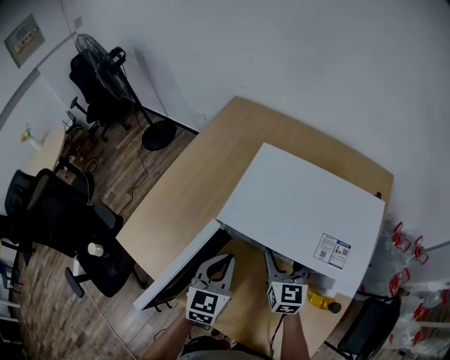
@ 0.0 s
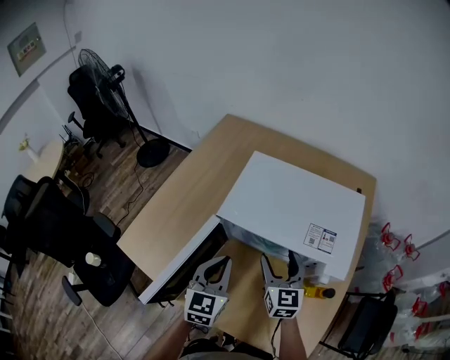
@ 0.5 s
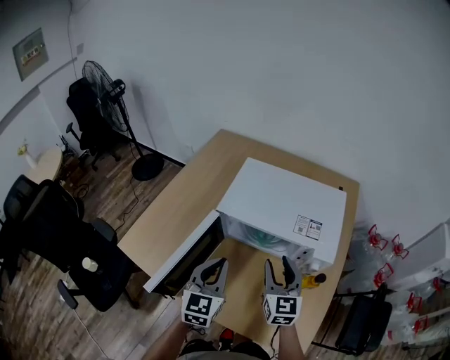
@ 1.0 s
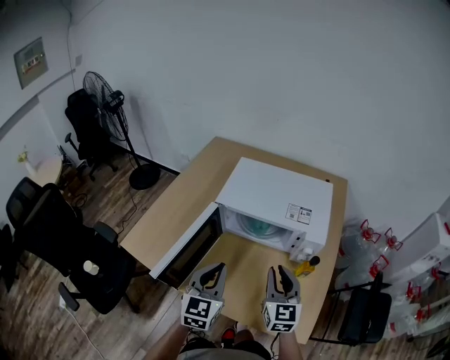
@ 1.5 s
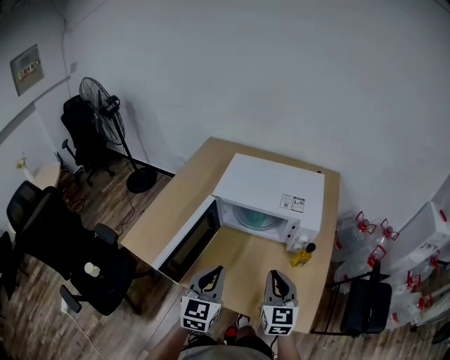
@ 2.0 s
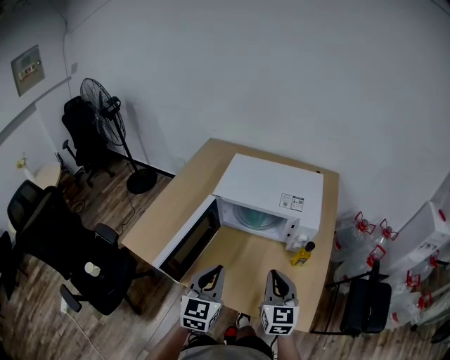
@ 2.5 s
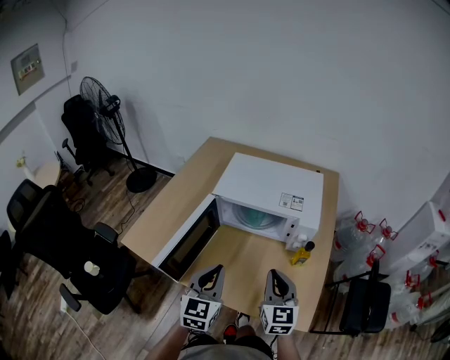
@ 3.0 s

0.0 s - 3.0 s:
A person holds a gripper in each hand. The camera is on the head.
0.0 s - 1.5 s: The two grippers go approximately 20 cm backward and upward. The right gripper closes up.
1.5 s - 3.0 s: The two grippers go about 5 cm backward.

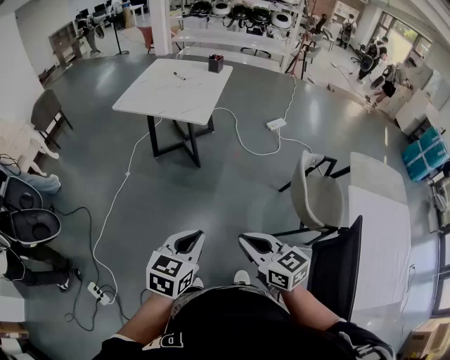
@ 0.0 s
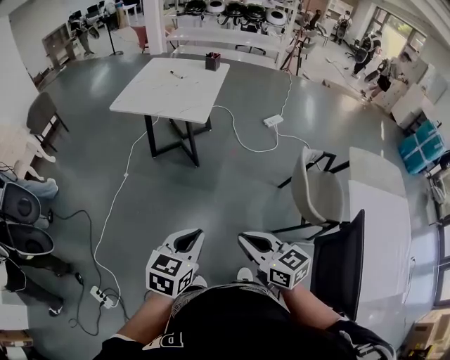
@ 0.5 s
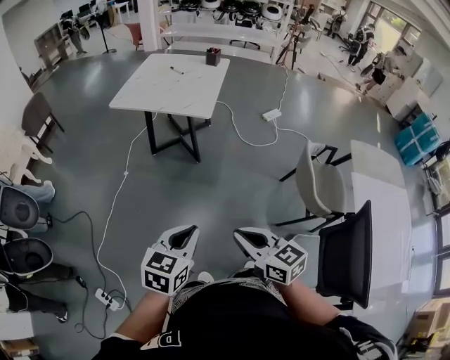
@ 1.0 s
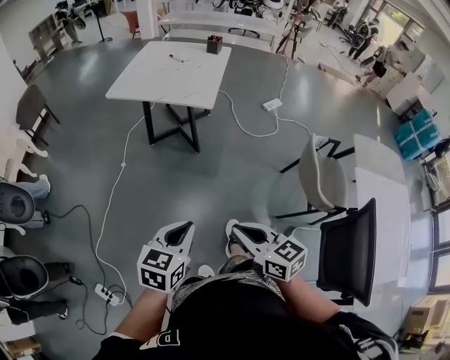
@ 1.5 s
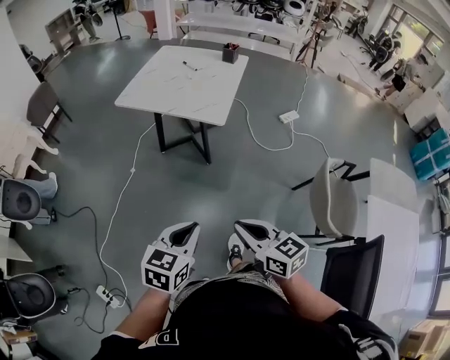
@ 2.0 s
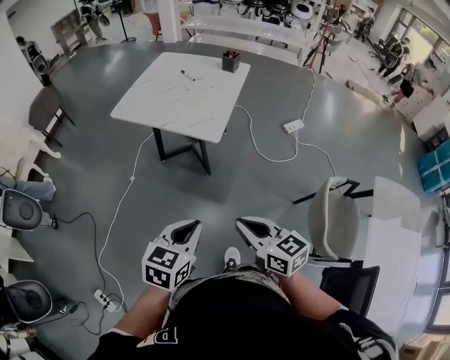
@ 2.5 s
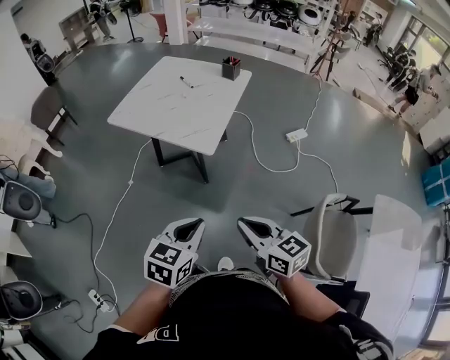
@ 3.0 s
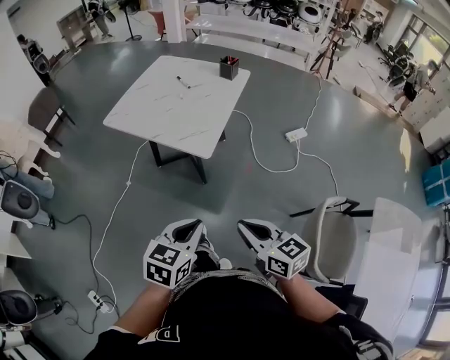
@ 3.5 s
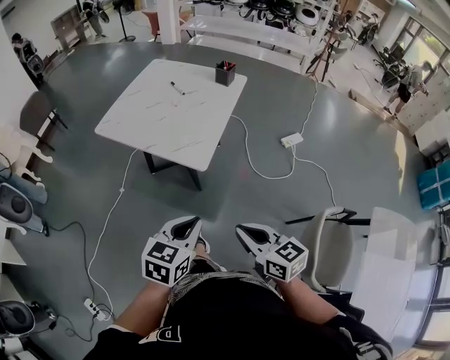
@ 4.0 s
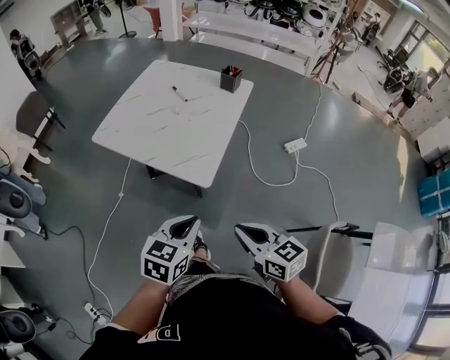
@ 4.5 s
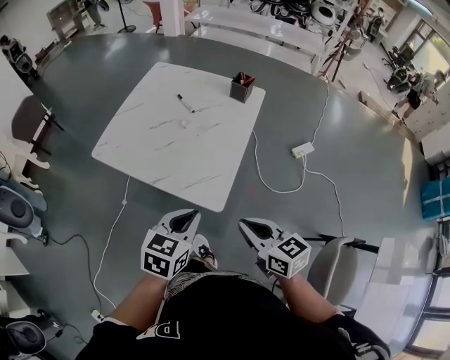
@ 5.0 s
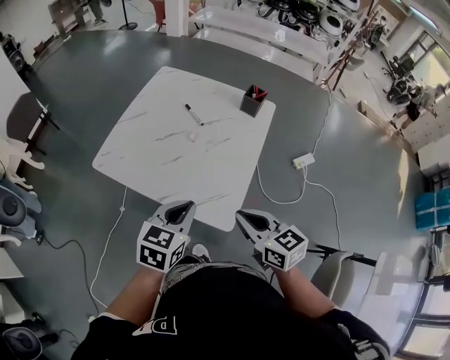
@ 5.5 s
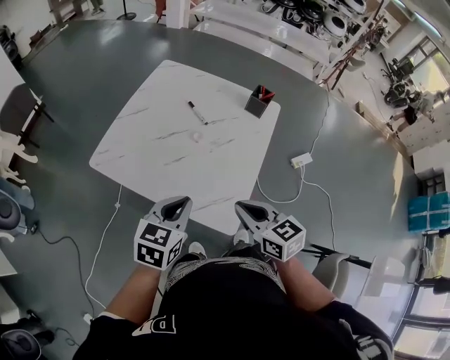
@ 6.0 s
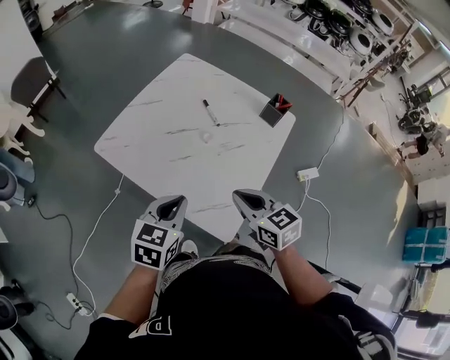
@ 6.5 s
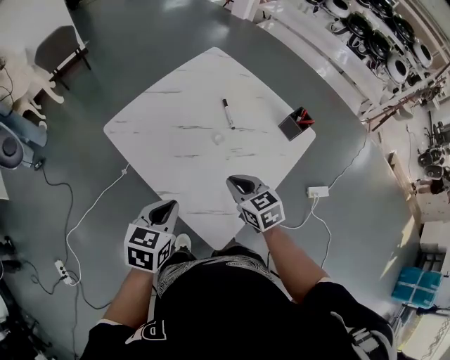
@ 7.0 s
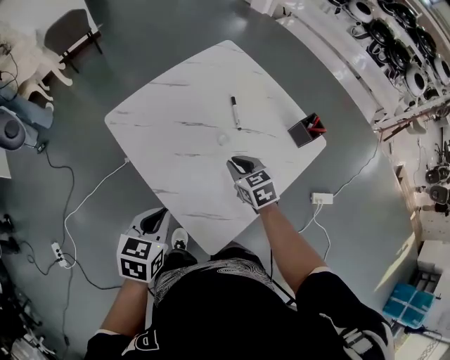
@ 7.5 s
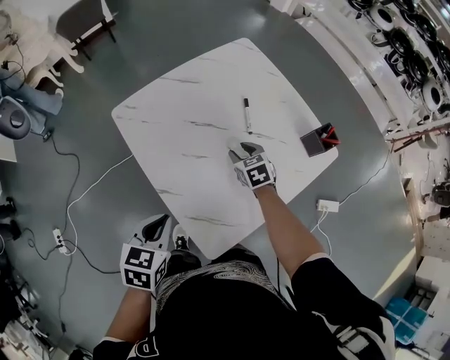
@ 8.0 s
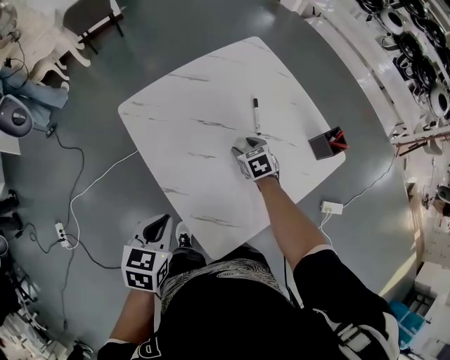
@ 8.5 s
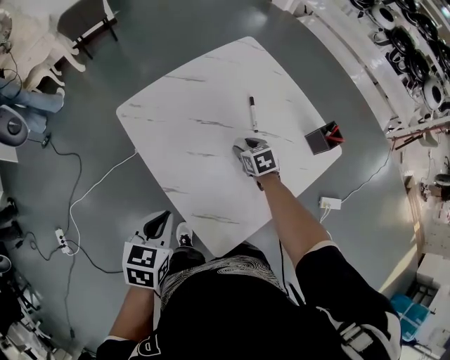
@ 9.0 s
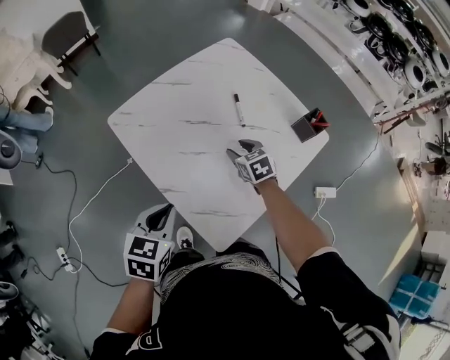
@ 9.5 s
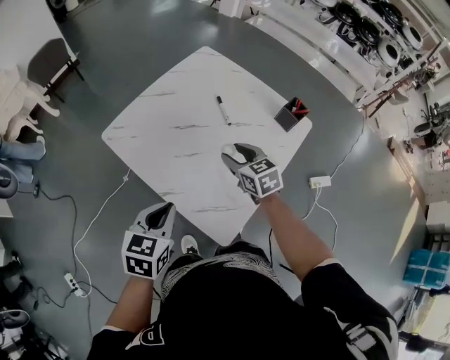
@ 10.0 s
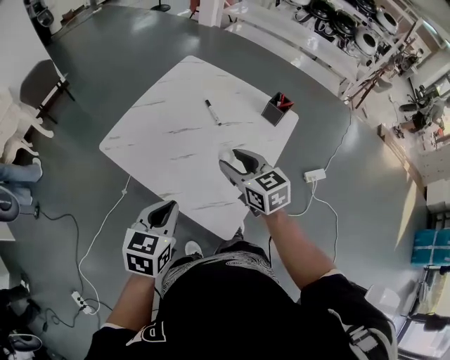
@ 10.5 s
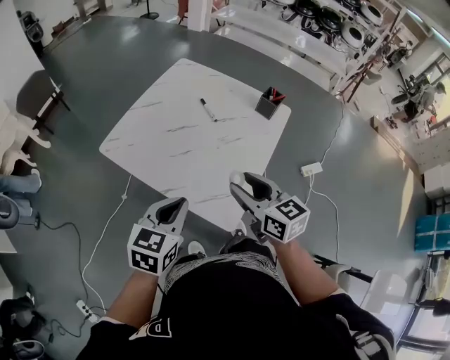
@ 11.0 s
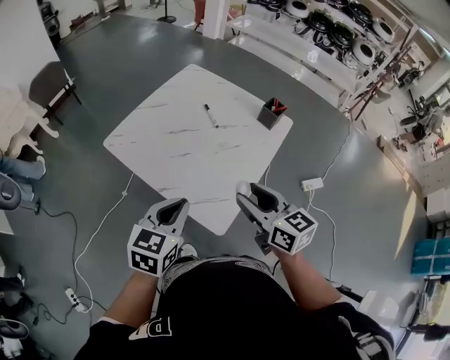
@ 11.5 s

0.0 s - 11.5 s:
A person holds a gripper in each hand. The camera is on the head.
0.0 s - 2.0 s: The grippers both shift forward and to the left by approximately 20 cm.
2.0 s - 4.0 s: Both grippers move forward and to the right, about 30 cm.
4.0 s - 6.0 s: The grippers both shift forward by some 40 cm.
6.0 s - 7.5 s: The right gripper travels forward and downward by approximately 25 cm, and turns by roughly 30 degrees; the left gripper goes some 5 cm downward, and swivels approximately 30 degrees.
7.5 s - 9.5 s: The right gripper opens.
9.5 s - 11.5 s: The right gripper travels backward and upward by approximately 35 cm, and tilts its fingers some 30 degrees upward; the left gripper goes about 15 cm upward, backward and to the right, and swivels approximately 20 degrees.

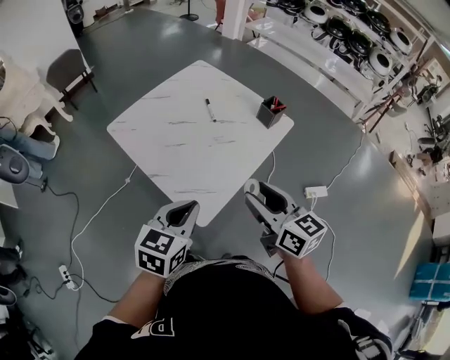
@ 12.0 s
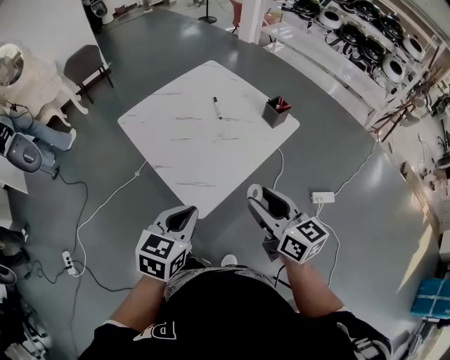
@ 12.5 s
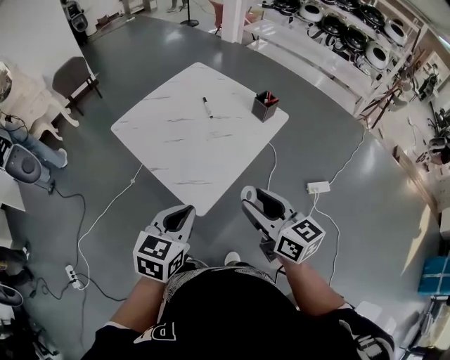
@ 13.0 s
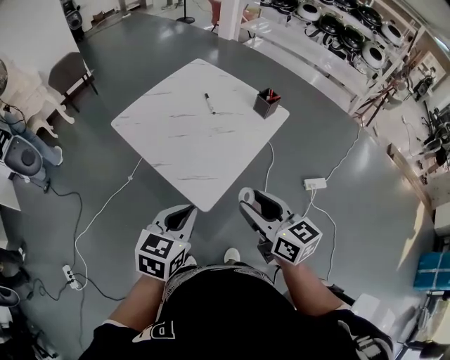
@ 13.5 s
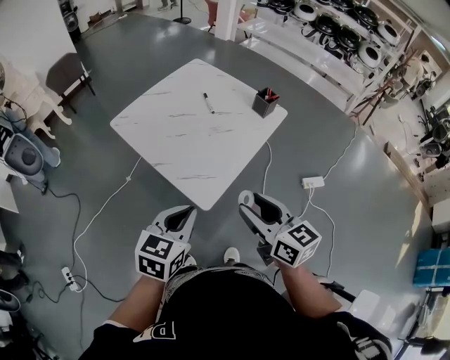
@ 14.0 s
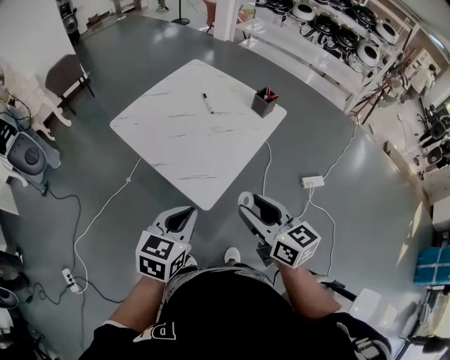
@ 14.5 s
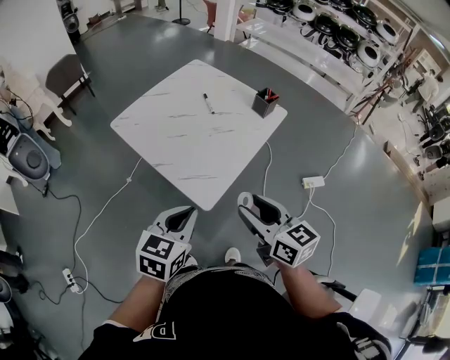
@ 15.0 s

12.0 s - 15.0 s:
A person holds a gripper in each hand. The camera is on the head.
12.0 s - 13.5 s: The two grippers go about 10 cm backward.
13.5 s - 15.0 s: The grippers make only small movements.

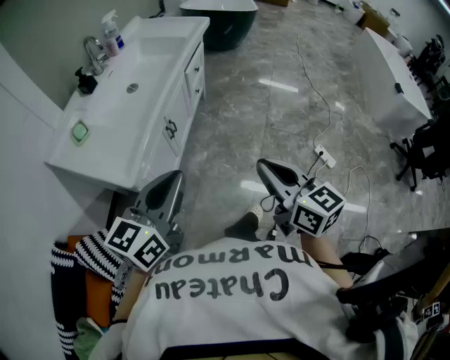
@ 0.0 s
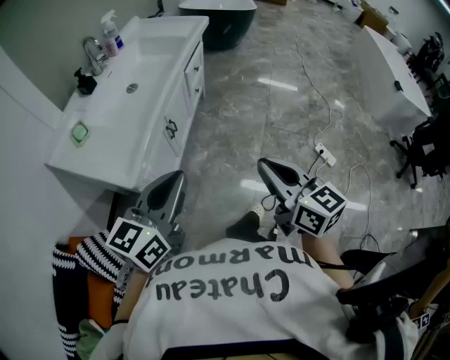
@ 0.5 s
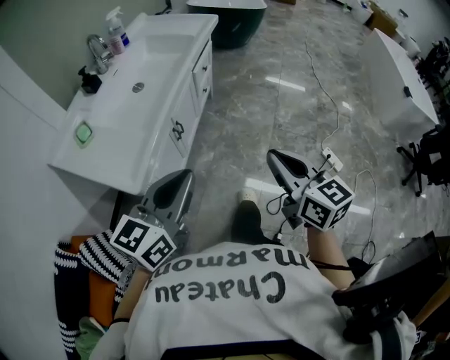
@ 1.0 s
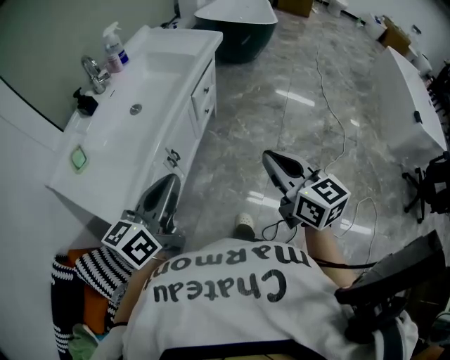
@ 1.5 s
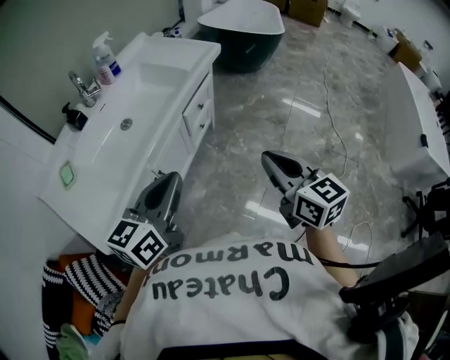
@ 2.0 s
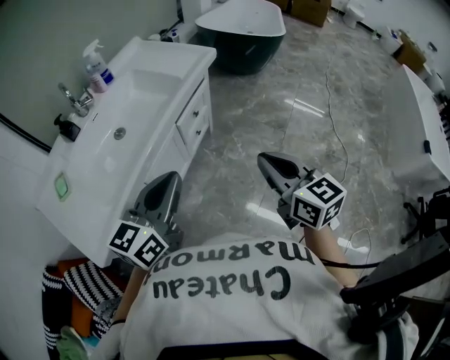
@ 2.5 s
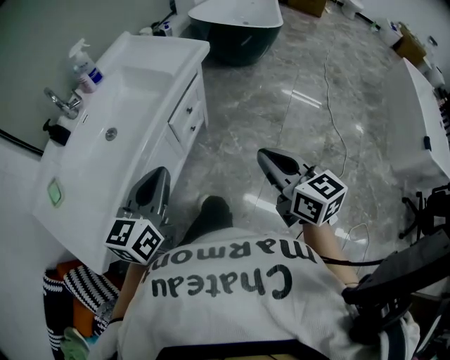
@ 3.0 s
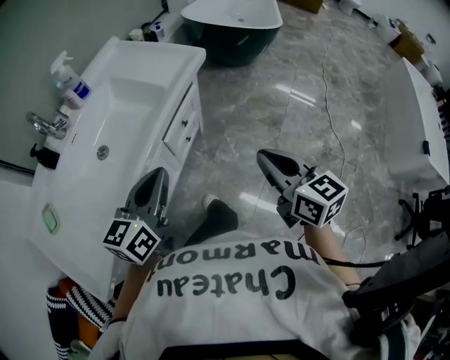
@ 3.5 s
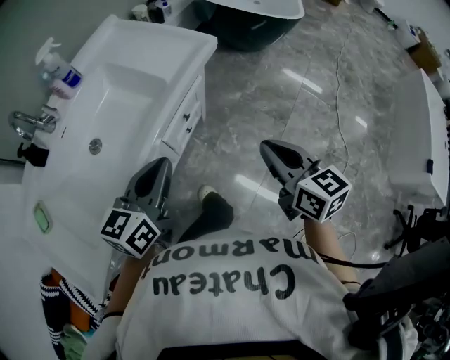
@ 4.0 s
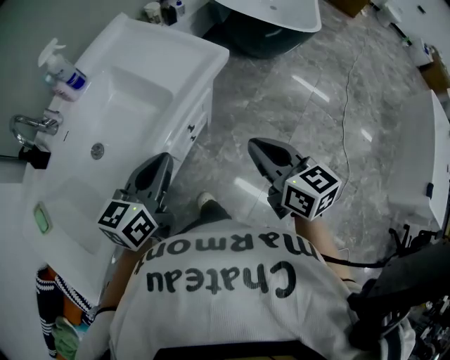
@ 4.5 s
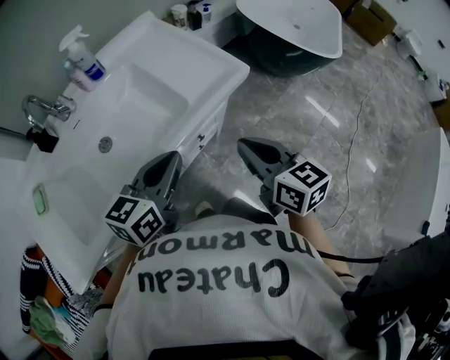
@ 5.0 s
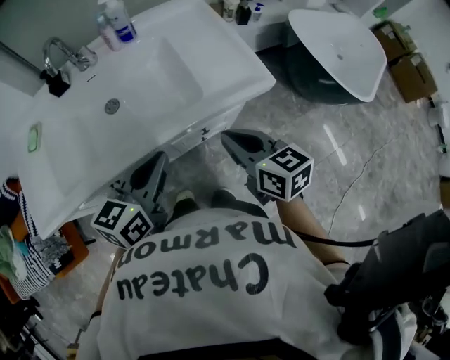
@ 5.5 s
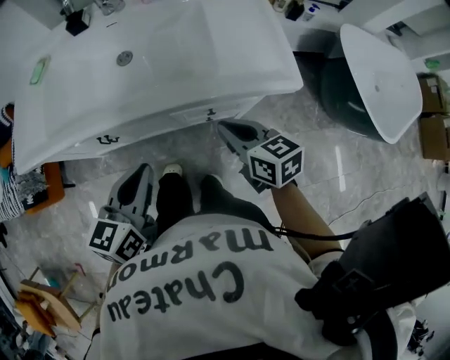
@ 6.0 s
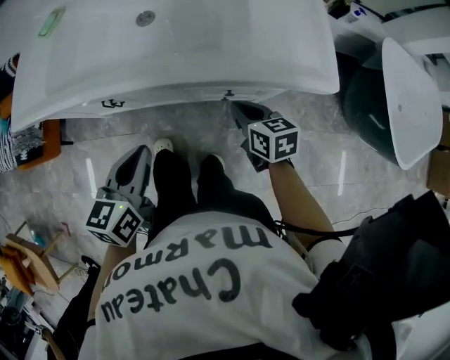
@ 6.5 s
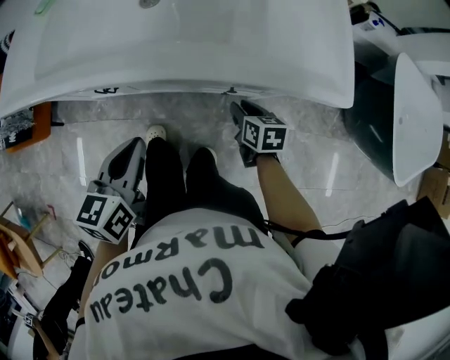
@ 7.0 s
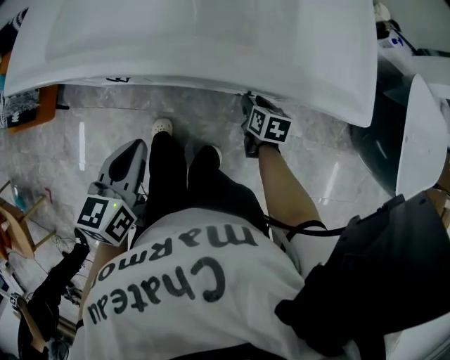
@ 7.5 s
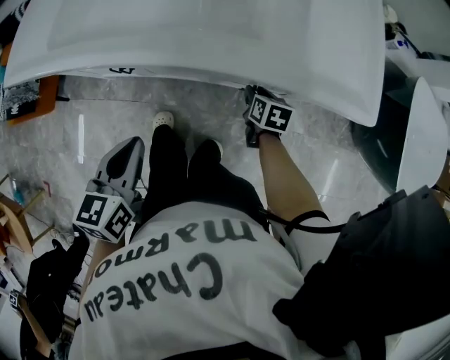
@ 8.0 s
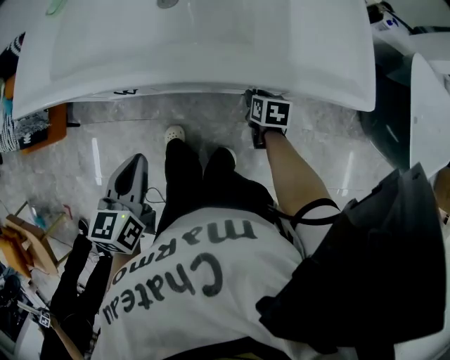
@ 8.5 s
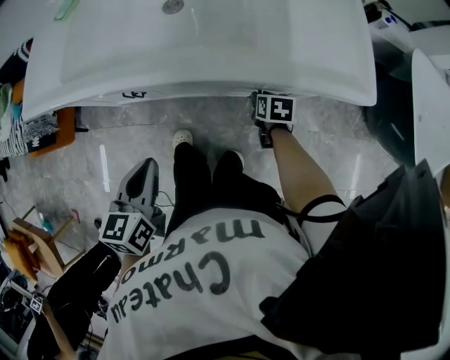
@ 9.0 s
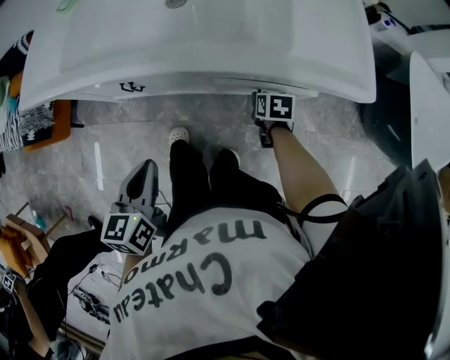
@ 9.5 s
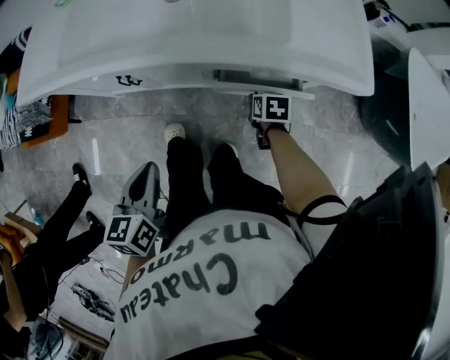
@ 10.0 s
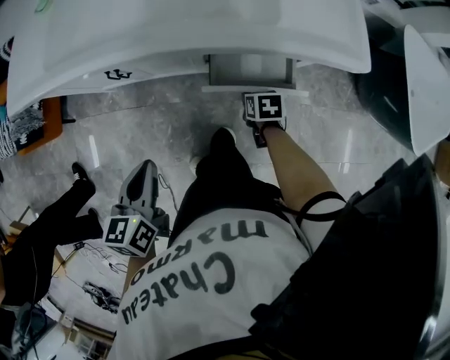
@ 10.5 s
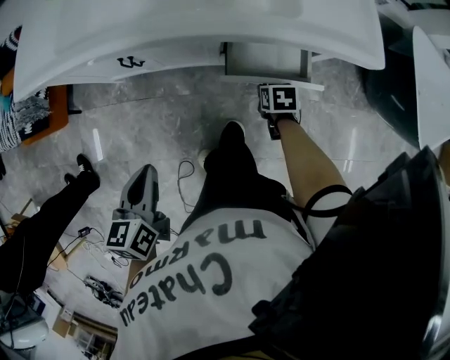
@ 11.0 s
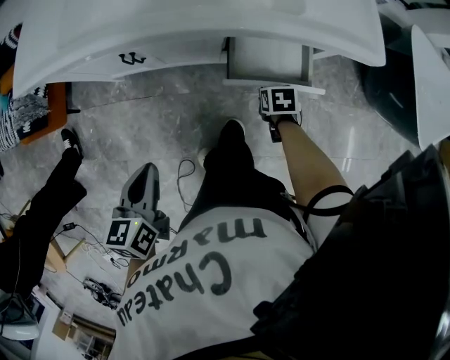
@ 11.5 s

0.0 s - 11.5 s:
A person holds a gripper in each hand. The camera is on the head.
0.0 s - 2.0 s: The two grippers go some 30 cm forward.
2.0 s - 4.0 s: The grippers both shift forward by about 25 cm.
4.0 s - 6.0 s: The right gripper shifts by about 25 cm, and changes its angle by some 60 degrees; the left gripper shifts by some 5 cm, and changes its angle by about 50 degrees.
6.0 s - 7.5 s: The left gripper heads downward and to the left, covering roughly 15 cm, and turns by some 20 degrees; the right gripper shifts about 25 cm downward, turns by some 30 degrees, and opens its fingers.
7.5 s - 9.5 s: The left gripper heads backward, covering roughly 5 cm.
9.5 s - 11.5 s: The two grippers go some 10 cm backward.
